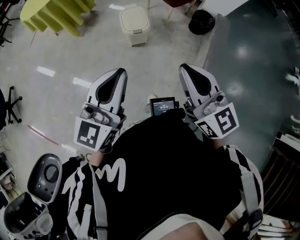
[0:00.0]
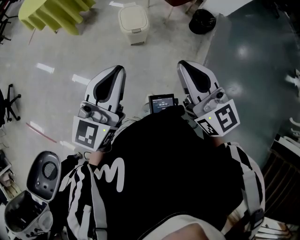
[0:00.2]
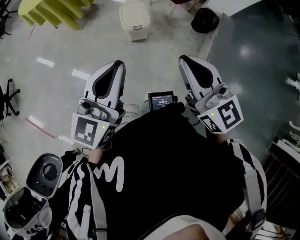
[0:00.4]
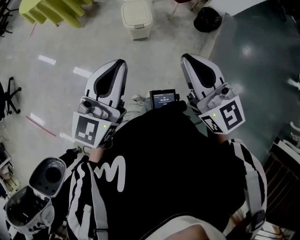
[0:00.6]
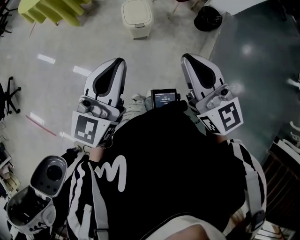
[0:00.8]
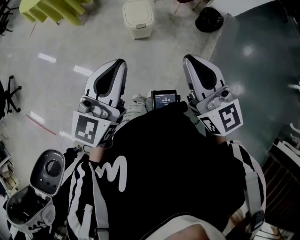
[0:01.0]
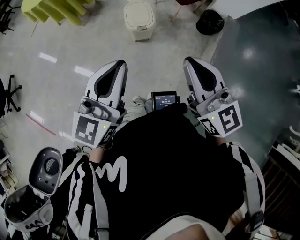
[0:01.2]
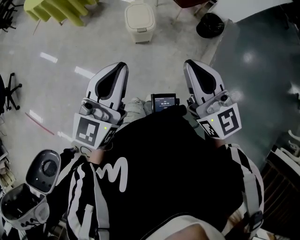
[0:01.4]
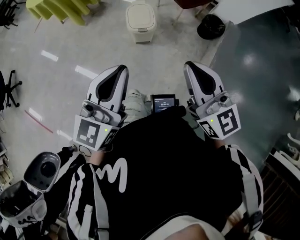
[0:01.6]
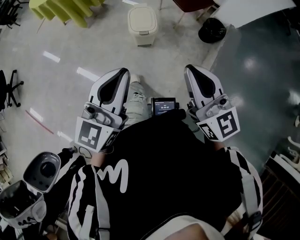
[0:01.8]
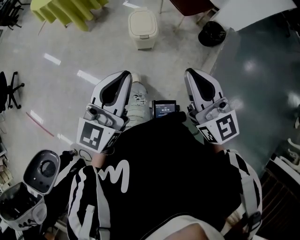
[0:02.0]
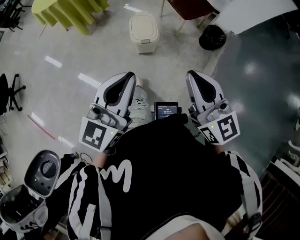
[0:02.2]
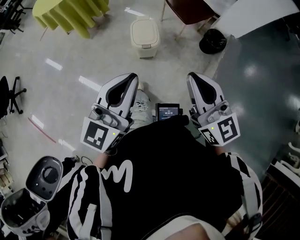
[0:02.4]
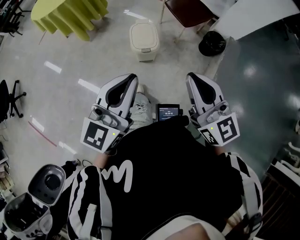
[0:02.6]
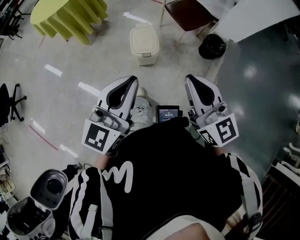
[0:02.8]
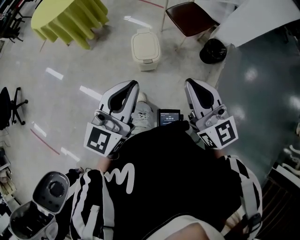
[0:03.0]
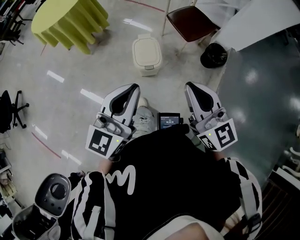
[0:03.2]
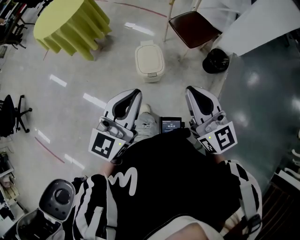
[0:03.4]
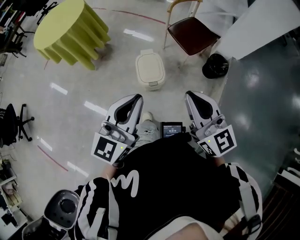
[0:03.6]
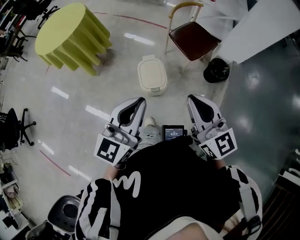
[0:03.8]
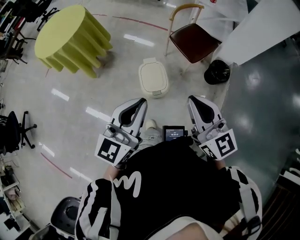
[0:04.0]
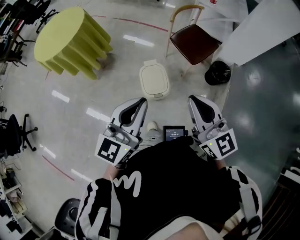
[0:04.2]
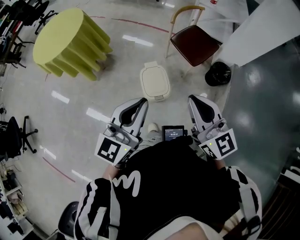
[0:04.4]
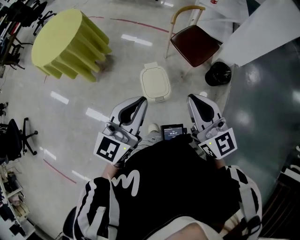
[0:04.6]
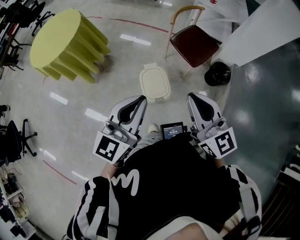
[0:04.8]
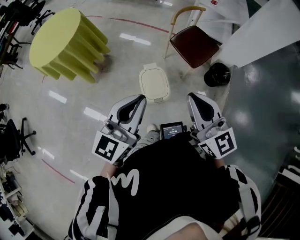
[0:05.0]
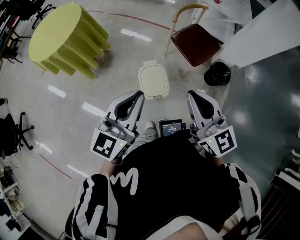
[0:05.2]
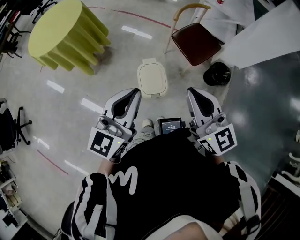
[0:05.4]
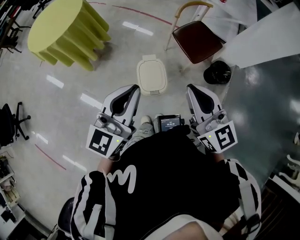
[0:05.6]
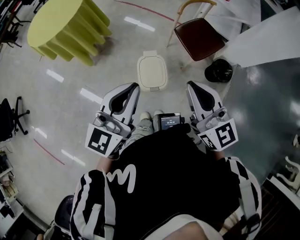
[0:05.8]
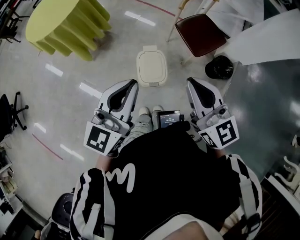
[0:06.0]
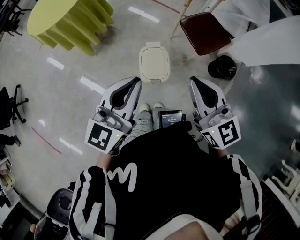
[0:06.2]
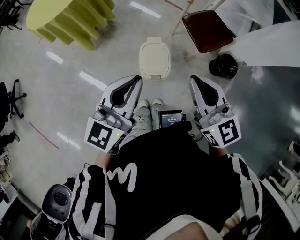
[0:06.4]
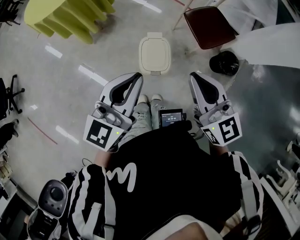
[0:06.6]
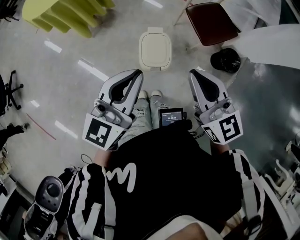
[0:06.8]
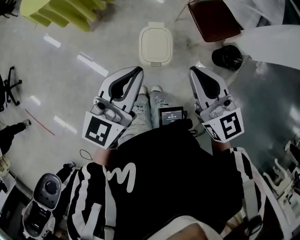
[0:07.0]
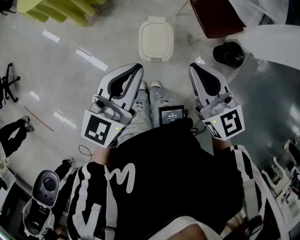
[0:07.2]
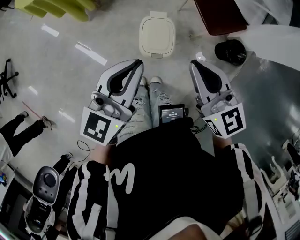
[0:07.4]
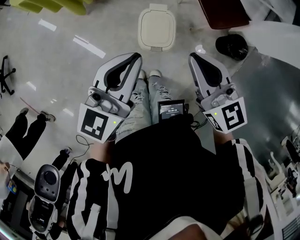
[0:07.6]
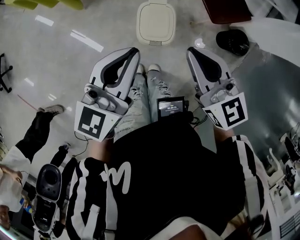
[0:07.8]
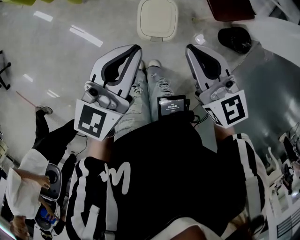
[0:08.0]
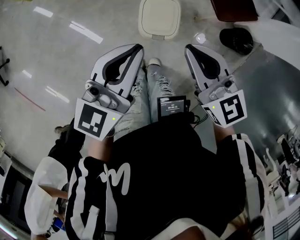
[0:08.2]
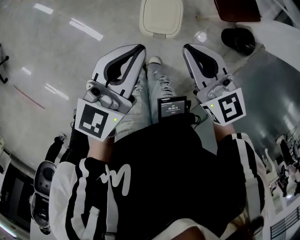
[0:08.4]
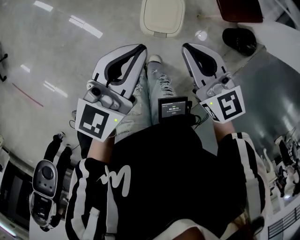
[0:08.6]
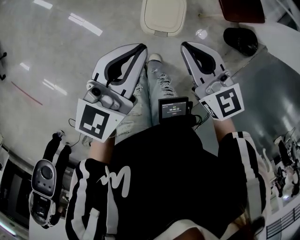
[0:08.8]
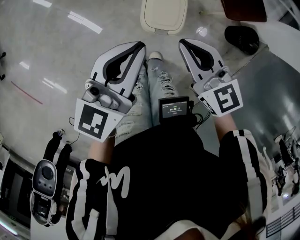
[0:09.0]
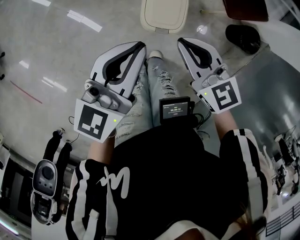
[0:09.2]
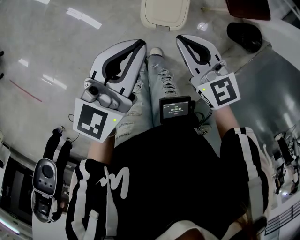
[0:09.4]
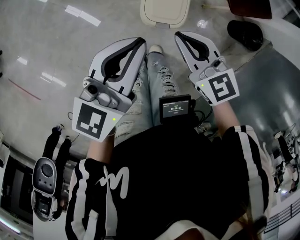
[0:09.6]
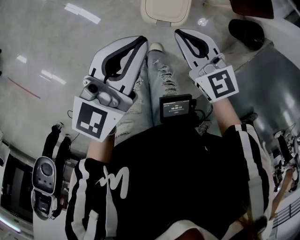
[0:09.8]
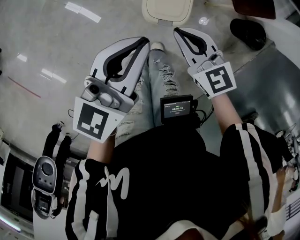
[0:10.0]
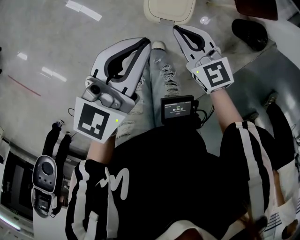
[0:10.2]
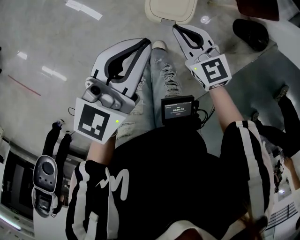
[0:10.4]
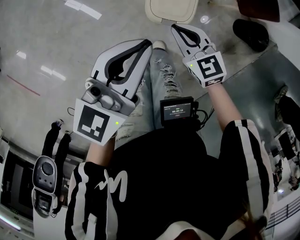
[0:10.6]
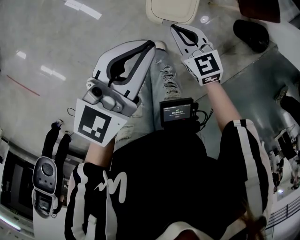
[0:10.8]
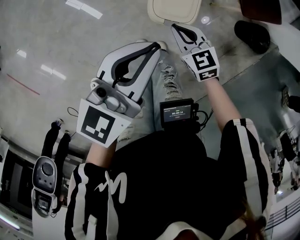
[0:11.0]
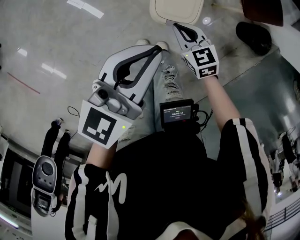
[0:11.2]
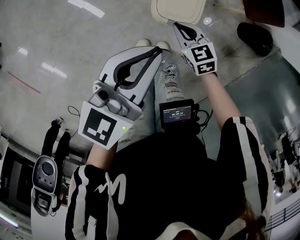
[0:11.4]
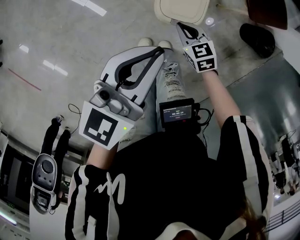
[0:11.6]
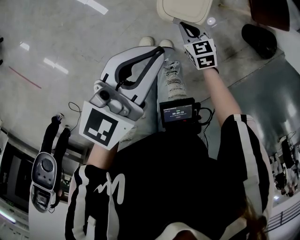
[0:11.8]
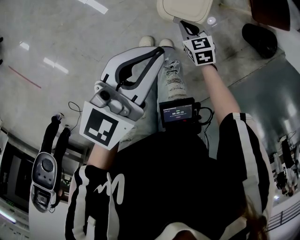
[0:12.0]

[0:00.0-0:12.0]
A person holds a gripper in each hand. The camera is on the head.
0:00.0 to 0:01.6: The right gripper goes some 5 cm forward.
0:01.6 to 0:03.0: Both grippers move forward, some 10 cm.
0:03.0 to 0:04.4: The two grippers go roughly 15 cm forward.
0:04.4 to 0:06.0: The grippers both shift forward by about 5 cm.
0:06.0 to 0:07.6: The two grippers go roughly 10 cm downward.
0:07.6 to 0:09.0: Both grippers travel together downward, approximately 10 cm.
0:09.0 to 0:10.4: The right gripper moves downward, roughly 15 cm. The left gripper ends up roughly 5 cm from where it was.
0:10.4 to 0:12.0: The right gripper travels downward by roughly 20 cm, and rotates about 20 degrees.

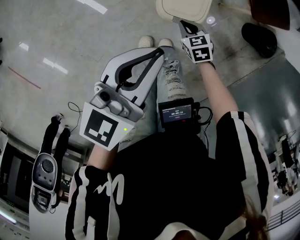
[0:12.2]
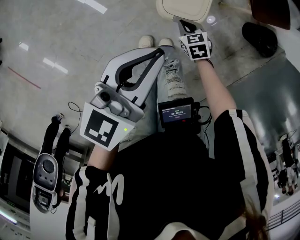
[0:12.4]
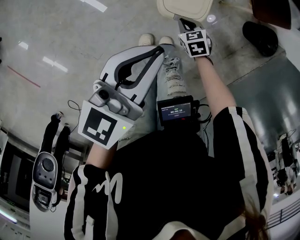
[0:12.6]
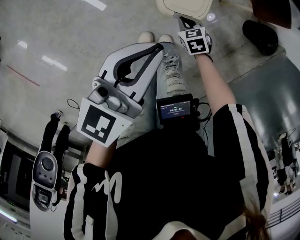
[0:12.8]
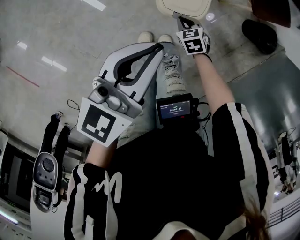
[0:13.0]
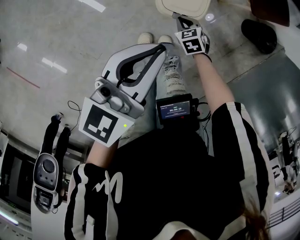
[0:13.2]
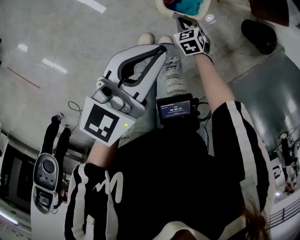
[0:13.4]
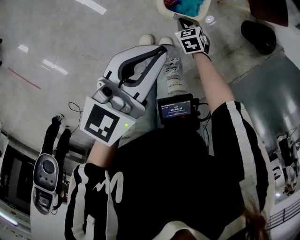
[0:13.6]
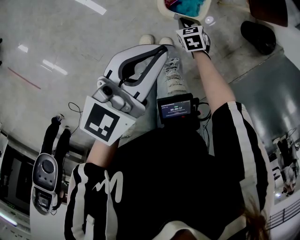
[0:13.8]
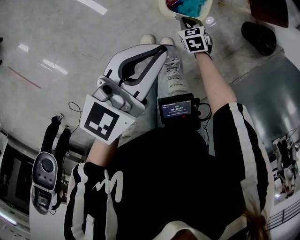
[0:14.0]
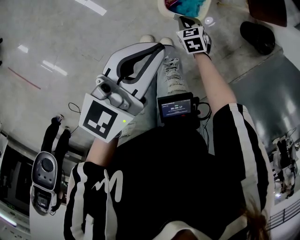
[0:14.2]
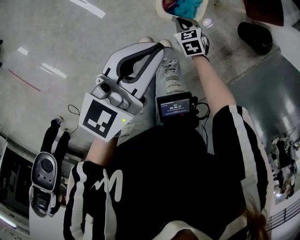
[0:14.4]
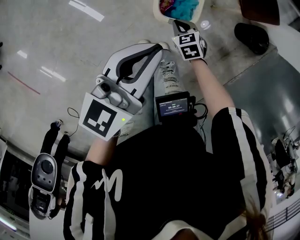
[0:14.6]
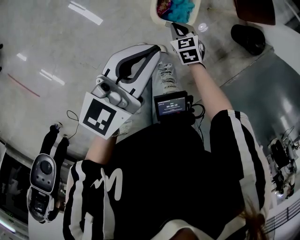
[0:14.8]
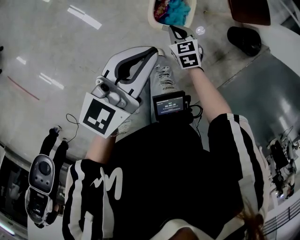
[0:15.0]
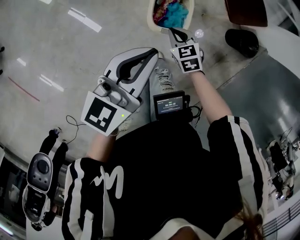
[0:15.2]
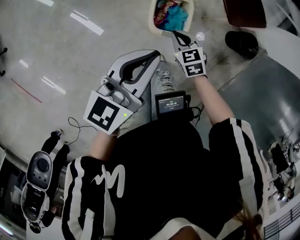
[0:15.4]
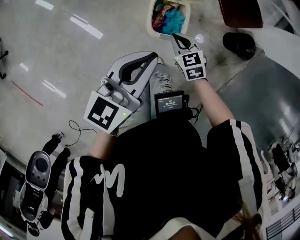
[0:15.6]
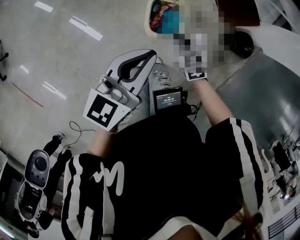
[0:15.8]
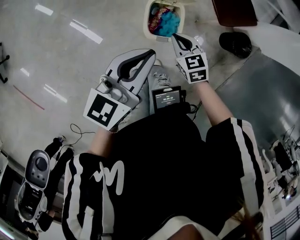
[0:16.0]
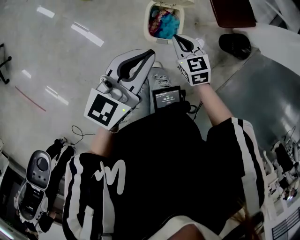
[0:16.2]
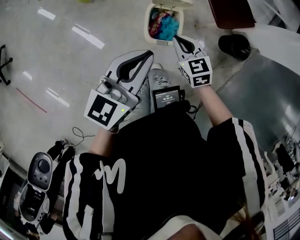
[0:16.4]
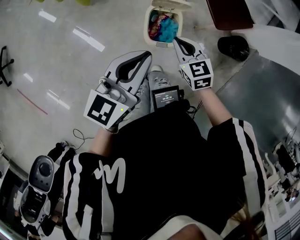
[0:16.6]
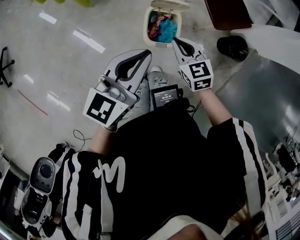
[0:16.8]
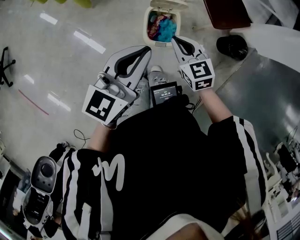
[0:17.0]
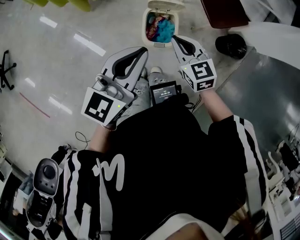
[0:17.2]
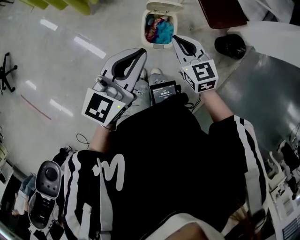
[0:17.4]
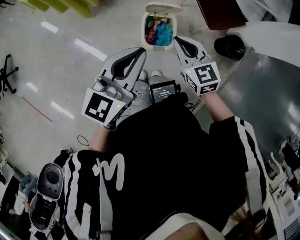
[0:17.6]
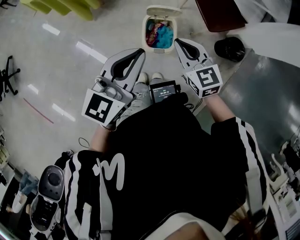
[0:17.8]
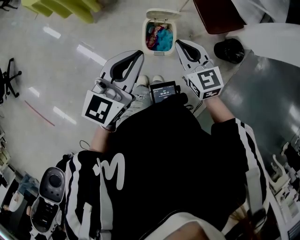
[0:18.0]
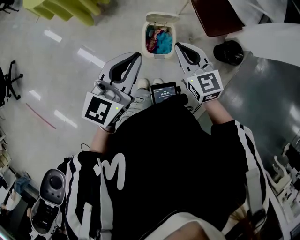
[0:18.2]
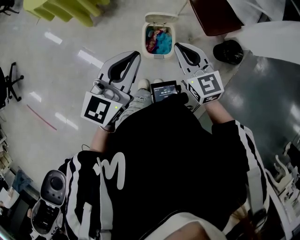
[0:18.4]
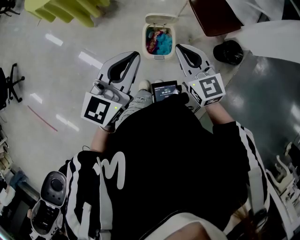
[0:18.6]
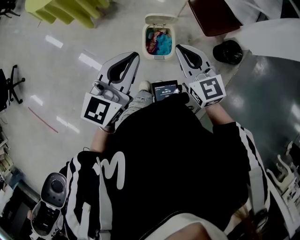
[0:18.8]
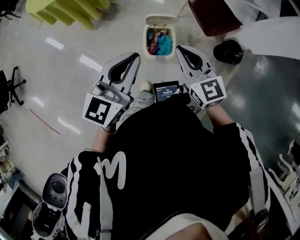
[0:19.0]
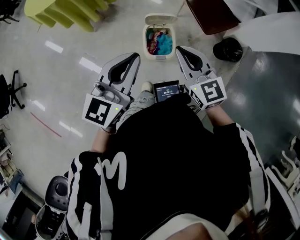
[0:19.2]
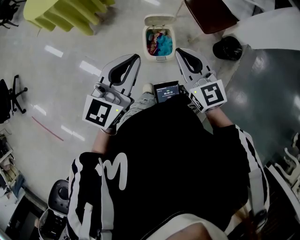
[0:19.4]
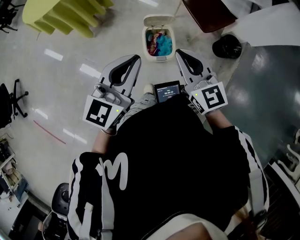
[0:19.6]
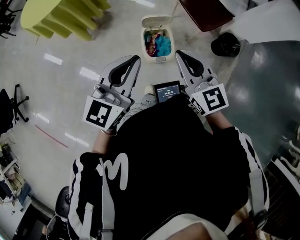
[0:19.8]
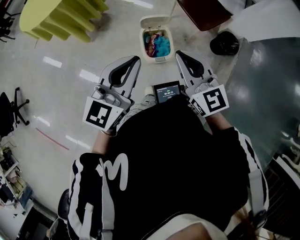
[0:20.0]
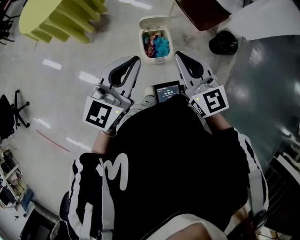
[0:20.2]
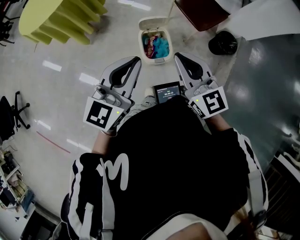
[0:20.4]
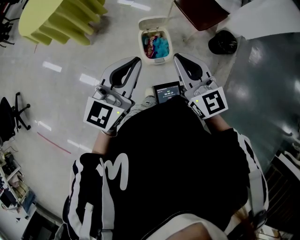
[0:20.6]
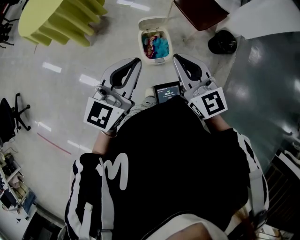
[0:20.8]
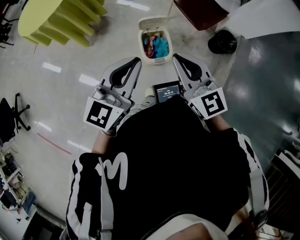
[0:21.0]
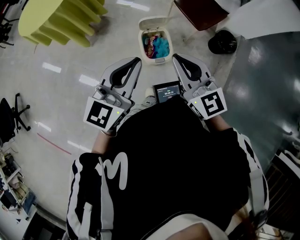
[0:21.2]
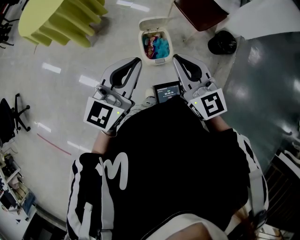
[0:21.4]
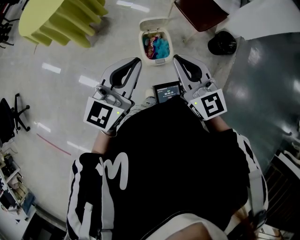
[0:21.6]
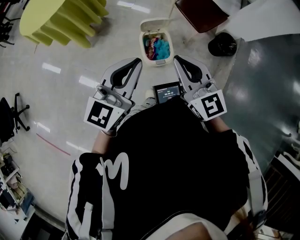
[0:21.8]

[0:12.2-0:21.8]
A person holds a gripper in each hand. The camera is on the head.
0:12.2 to 0:13.8: The grippers move only a little.
0:13.8 to 0:15.4: The right gripper travels upward by roughly 20 cm. The left gripper is displaced upward by approximately 5 cm.
0:15.4 to 0:17.0: The right gripper shifts approximately 20 cm upward. The left gripper shifts some 10 cm upward.
0:17.0 to 0:18.6: The right gripper goes some 10 cm upward.
0:18.6 to 0:20.2: The right gripper is displaced backward and upward by roughly 10 cm.
0:20.2 to 0:21.8: The grippers move only a little.

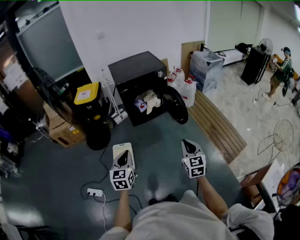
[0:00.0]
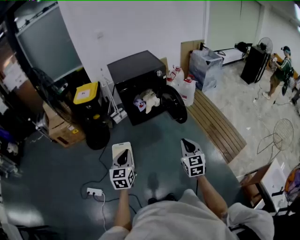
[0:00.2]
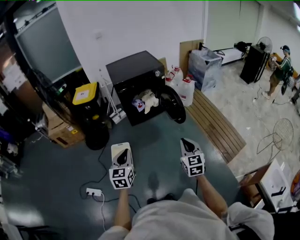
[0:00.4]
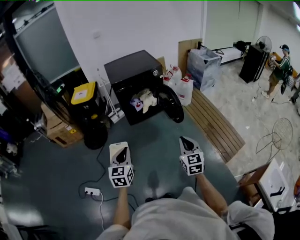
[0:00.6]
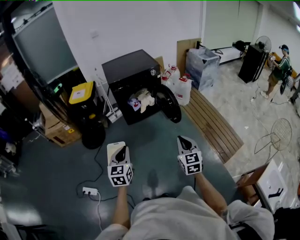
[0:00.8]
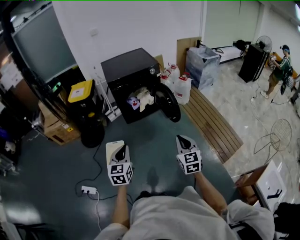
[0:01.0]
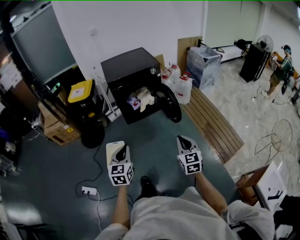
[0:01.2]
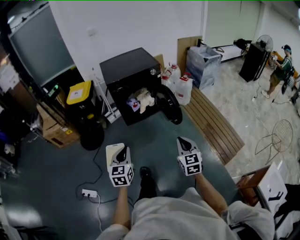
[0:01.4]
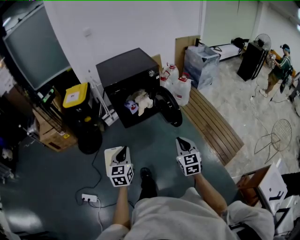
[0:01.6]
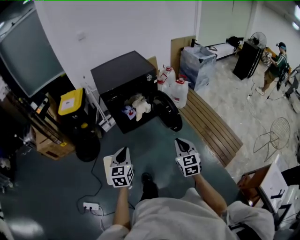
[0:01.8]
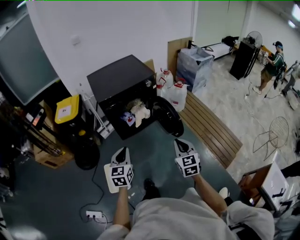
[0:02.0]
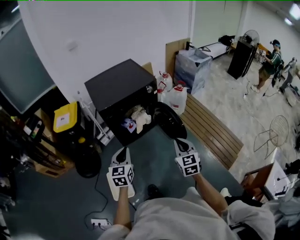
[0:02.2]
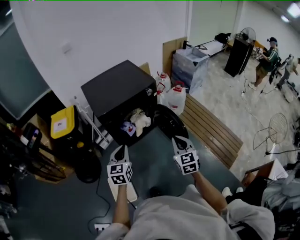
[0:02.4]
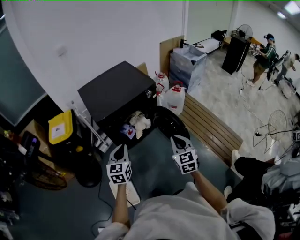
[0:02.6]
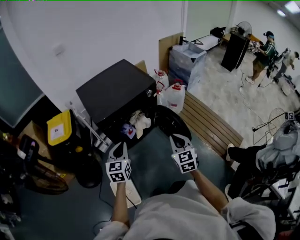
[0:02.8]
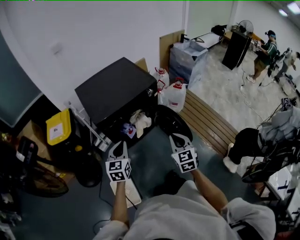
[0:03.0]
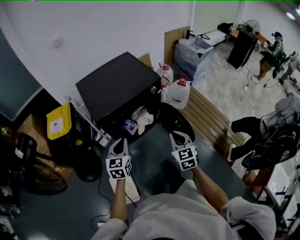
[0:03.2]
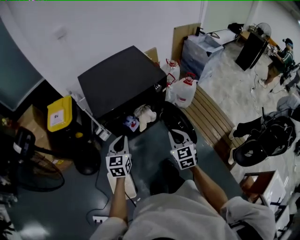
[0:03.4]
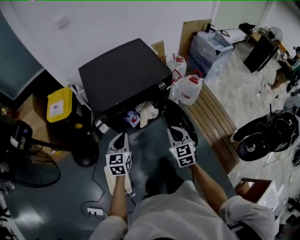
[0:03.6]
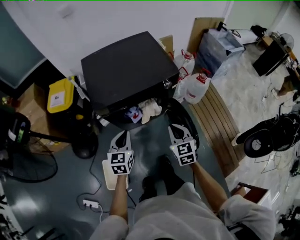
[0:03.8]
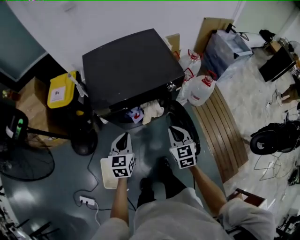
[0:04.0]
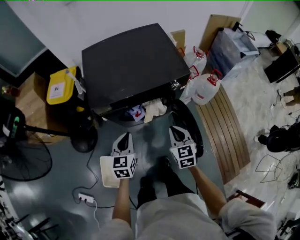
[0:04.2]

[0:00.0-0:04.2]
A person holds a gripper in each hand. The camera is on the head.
0:00.0 to 0:01.4: The left gripper heads forward and to the right, covering approximately 10 cm; the right gripper shifts some 5 cm forward.
0:01.4 to 0:02.8: The two grippers go roughly 40 cm forward.
0:02.8 to 0:04.2: Both grippers travel together forward and downward, some 25 cm. The left gripper rotates some 20 degrees. The right gripper changes its angle by approximately 20 degrees.
